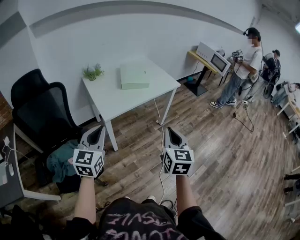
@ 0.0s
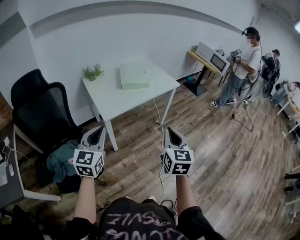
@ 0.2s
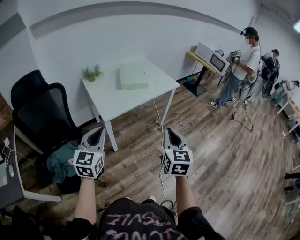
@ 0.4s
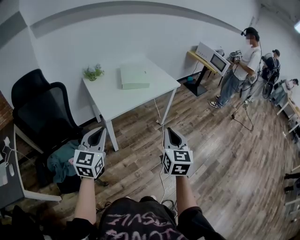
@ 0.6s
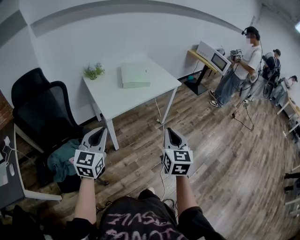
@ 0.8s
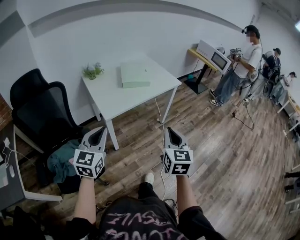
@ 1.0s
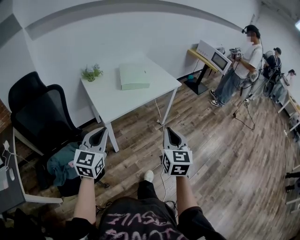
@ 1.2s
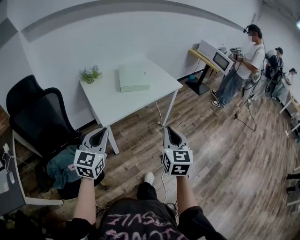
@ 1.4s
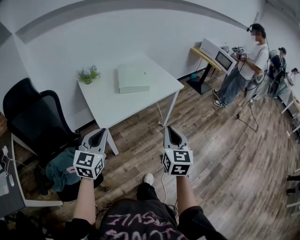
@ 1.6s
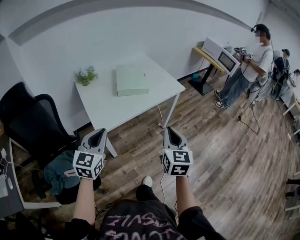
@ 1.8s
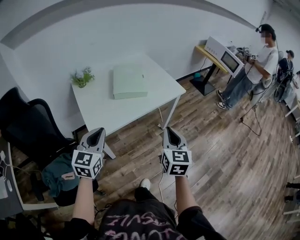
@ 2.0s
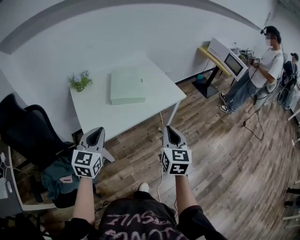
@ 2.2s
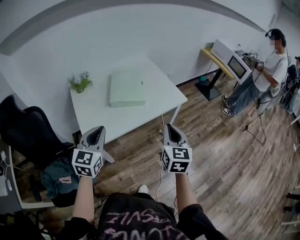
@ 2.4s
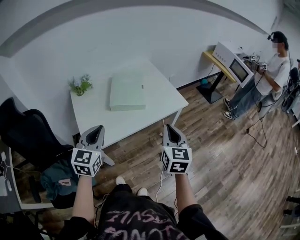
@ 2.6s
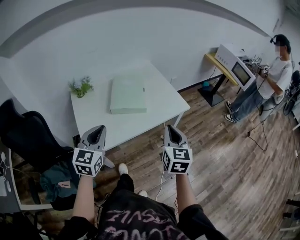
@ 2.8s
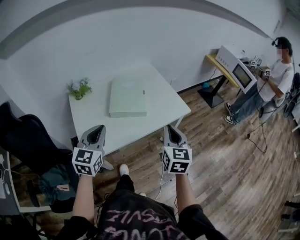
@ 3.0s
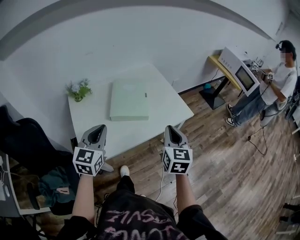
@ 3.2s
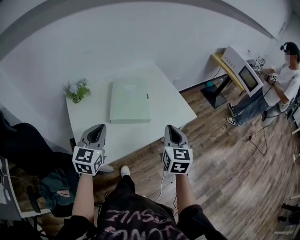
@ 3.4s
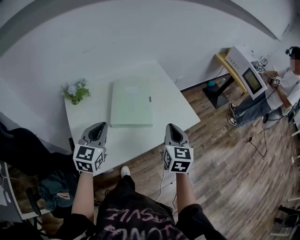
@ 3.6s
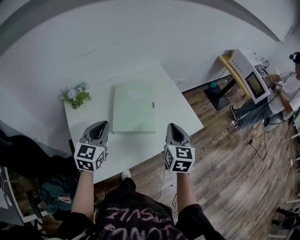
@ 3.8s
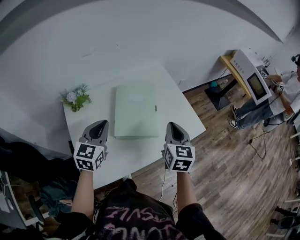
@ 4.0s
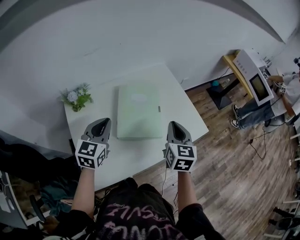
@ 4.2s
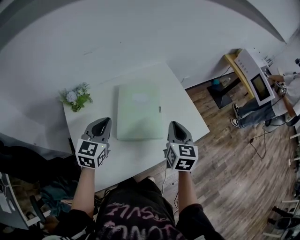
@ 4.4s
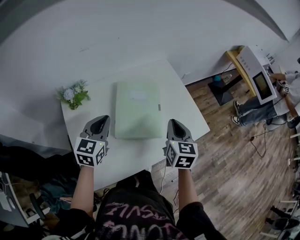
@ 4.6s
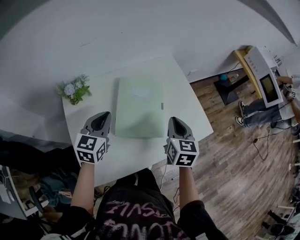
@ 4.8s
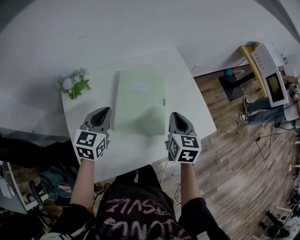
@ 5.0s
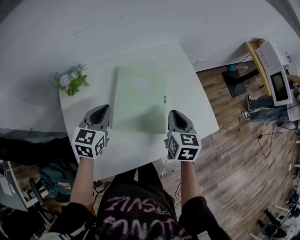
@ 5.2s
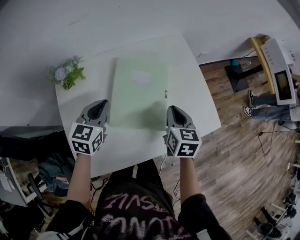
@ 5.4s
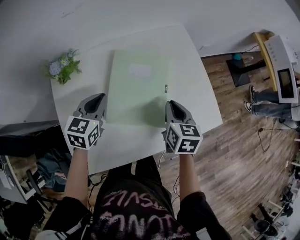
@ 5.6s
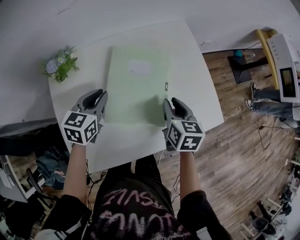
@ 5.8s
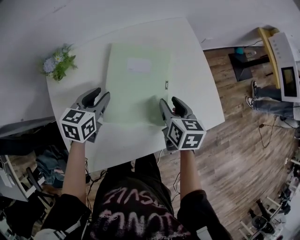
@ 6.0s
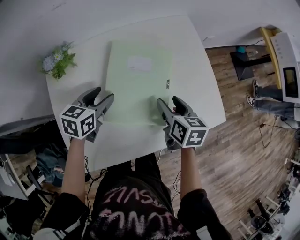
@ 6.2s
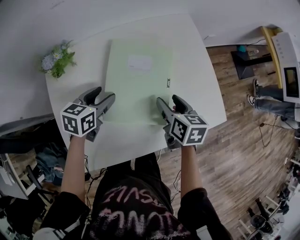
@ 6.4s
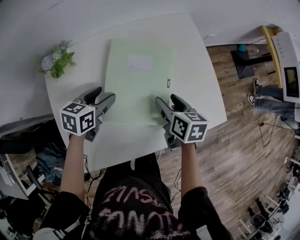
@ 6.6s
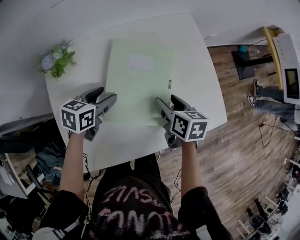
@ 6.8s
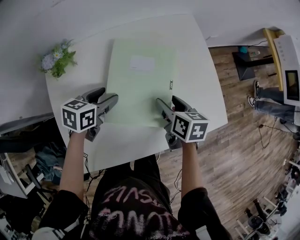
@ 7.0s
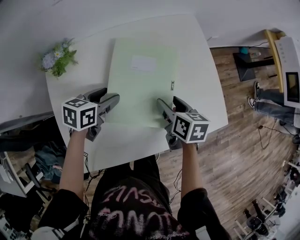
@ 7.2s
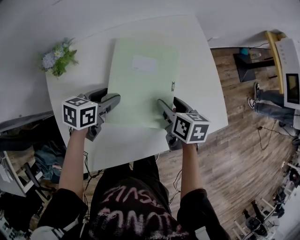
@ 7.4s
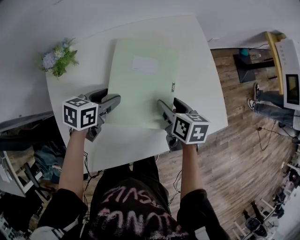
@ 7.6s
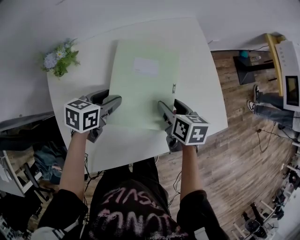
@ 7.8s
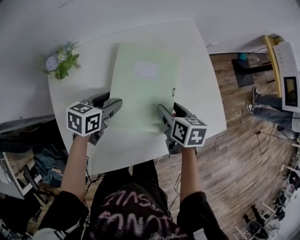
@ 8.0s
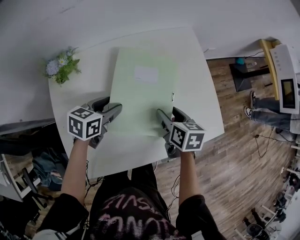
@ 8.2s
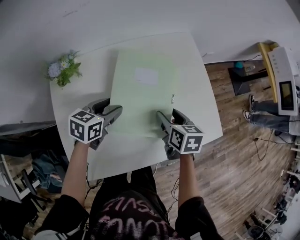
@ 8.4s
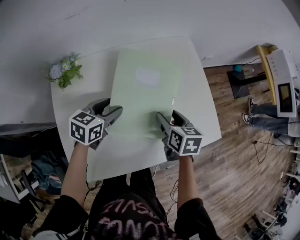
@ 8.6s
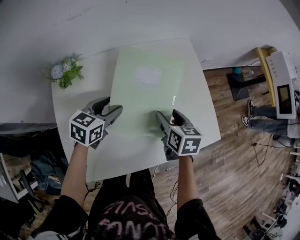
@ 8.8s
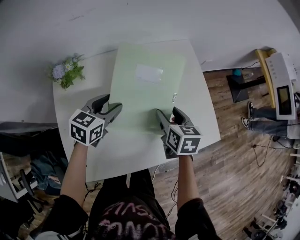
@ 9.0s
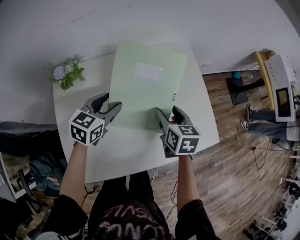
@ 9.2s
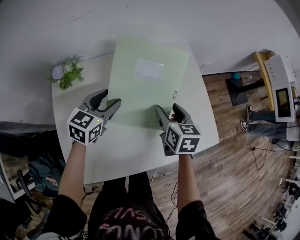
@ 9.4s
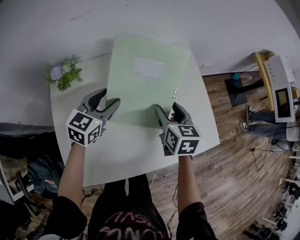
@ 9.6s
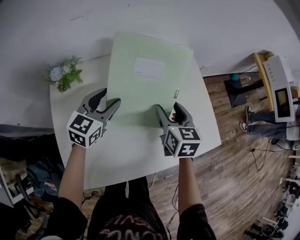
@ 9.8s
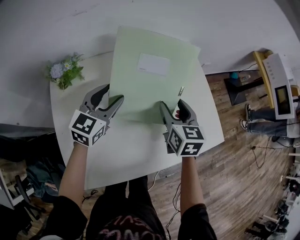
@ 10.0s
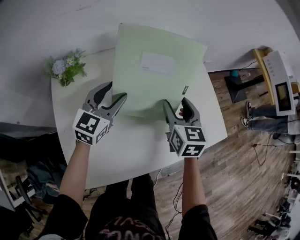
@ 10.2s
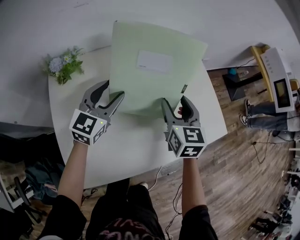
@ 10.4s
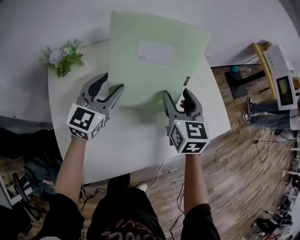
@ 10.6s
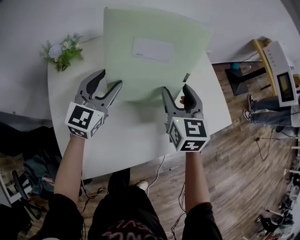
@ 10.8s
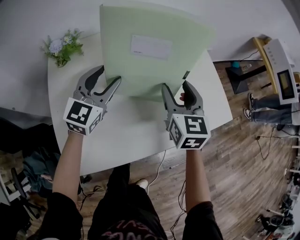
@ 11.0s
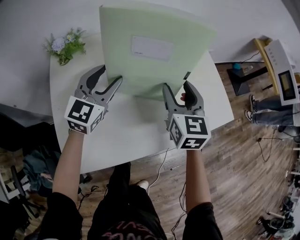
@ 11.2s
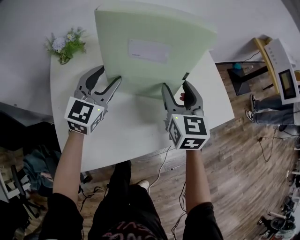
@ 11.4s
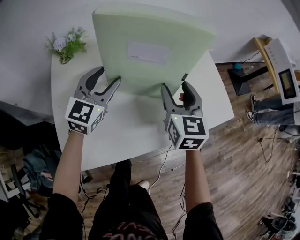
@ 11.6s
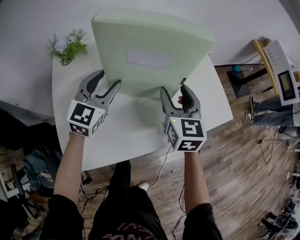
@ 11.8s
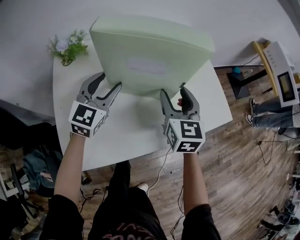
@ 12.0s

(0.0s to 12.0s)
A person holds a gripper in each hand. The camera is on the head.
0.0s - 1.6s: The grippers both shift forward by roughly 10 cm.
1.6s - 3.0s: Both grippers move forward, about 30 cm.
3.0s - 4.4s: The right gripper shifts roughly 25 cm forward and to the left; the left gripper moves forward, approximately 25 cm.
4.4s - 6.0s: The grippers both shift downward and forward by roughly 15 cm. The left gripper changes its angle by about 20 degrees, and opens its fingers. The right gripper changes its angle by roughly 30 degrees, and opens up.
6.0s - 7.6s: The left gripper ends up roughly 5 cm from where it was, and opens up.
7.6s - 9.0s: The left gripper is displaced upward by some 5 cm, and rotates approximately 20 degrees, while the right gripper changes place by roughly 5 cm.
9.0s - 10.4s: The right gripper rotates approximately 20 degrees, while the left gripper rotates some 30 degrees.
10.4s - 12.0s: Both grippers travel together backward, some 5 cm.

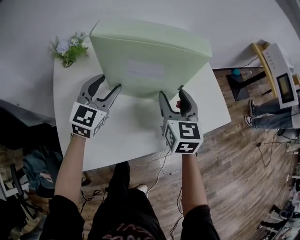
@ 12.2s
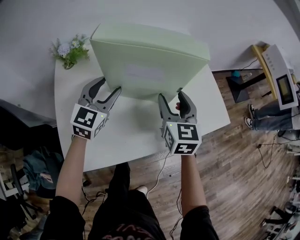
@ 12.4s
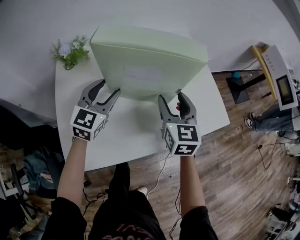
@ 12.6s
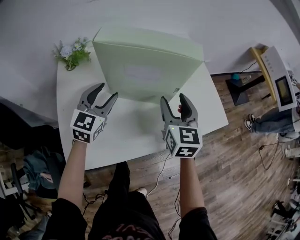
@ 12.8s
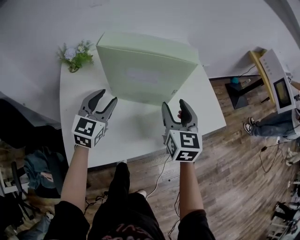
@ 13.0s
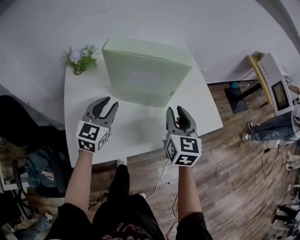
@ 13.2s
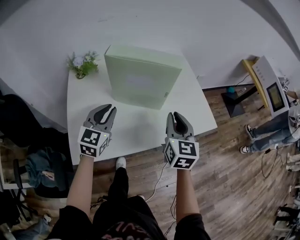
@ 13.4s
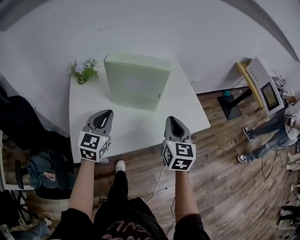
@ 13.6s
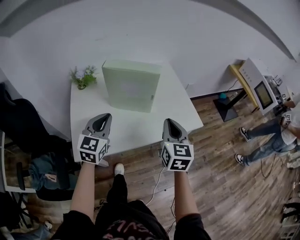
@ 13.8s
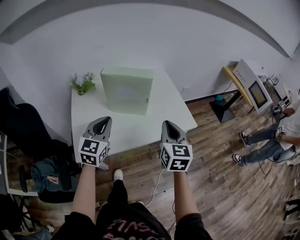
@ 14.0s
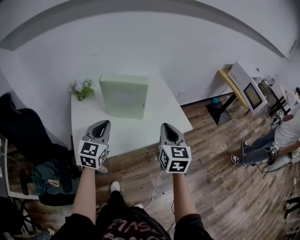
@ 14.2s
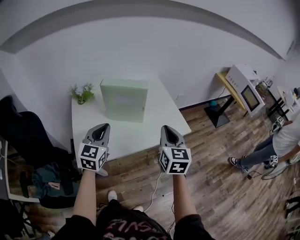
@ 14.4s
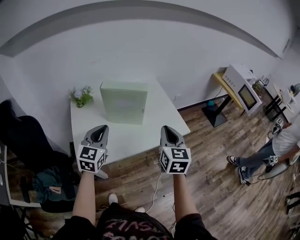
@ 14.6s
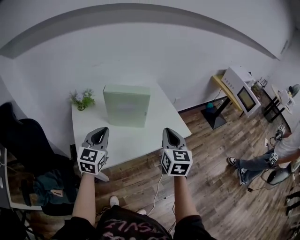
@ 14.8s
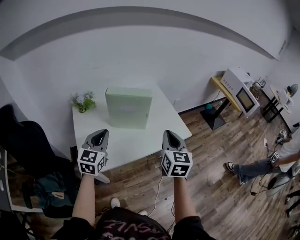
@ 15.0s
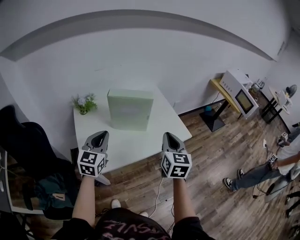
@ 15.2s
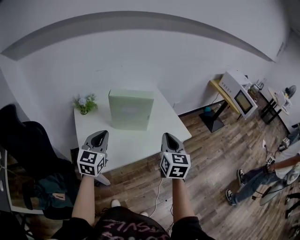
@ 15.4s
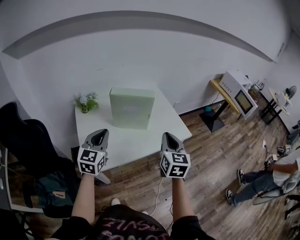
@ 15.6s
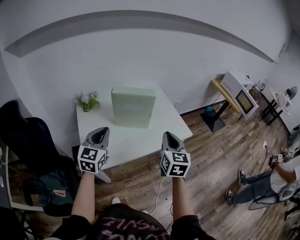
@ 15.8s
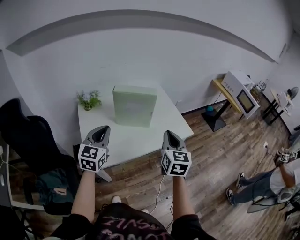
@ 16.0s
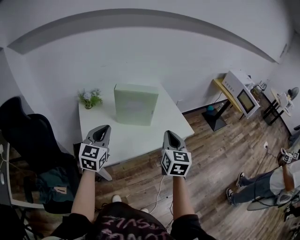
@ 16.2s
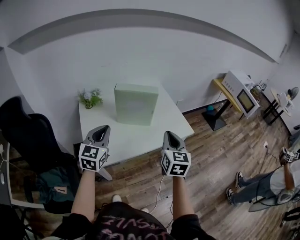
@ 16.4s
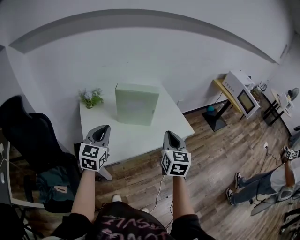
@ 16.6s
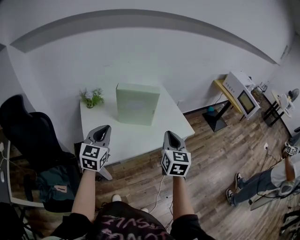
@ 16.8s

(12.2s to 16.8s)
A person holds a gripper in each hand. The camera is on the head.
12.2s - 13.8s: The right gripper heads backward, upward and to the right, covering approximately 20 cm, and closes, while the left gripper shifts roughly 20 cm backward and upward, and closes its fingers.
13.8s - 15.2s: The right gripper shifts roughly 10 cm upward and backward; the left gripper is displaced upward by some 10 cm.
15.2s - 16.8s: There are only small adjustments of the grippers.

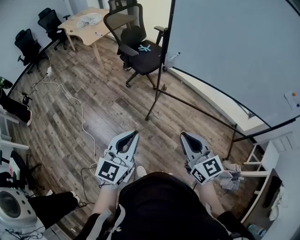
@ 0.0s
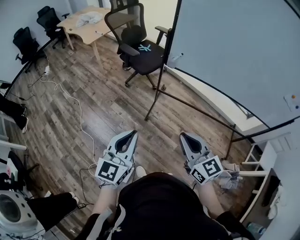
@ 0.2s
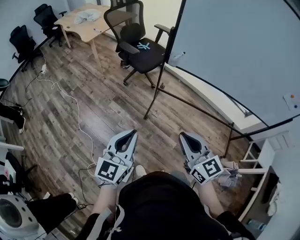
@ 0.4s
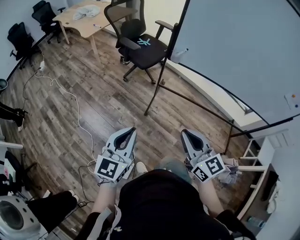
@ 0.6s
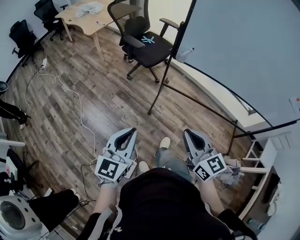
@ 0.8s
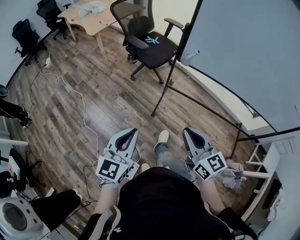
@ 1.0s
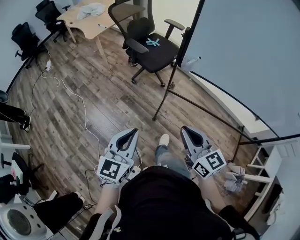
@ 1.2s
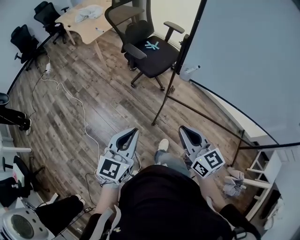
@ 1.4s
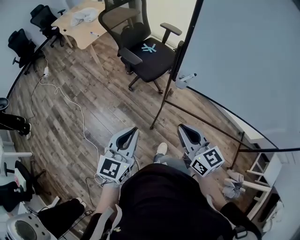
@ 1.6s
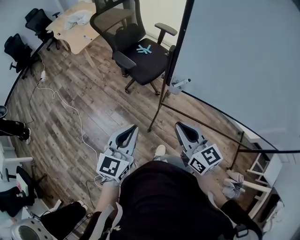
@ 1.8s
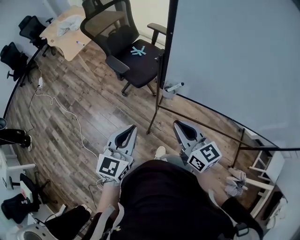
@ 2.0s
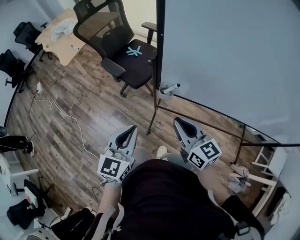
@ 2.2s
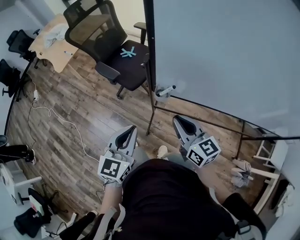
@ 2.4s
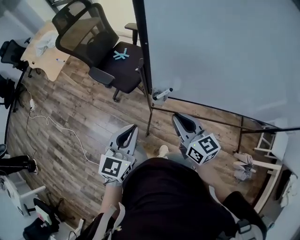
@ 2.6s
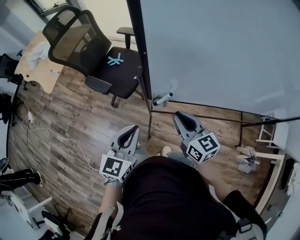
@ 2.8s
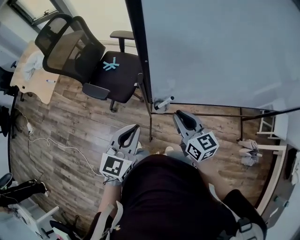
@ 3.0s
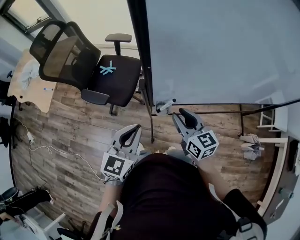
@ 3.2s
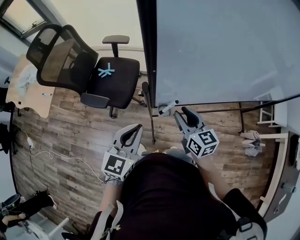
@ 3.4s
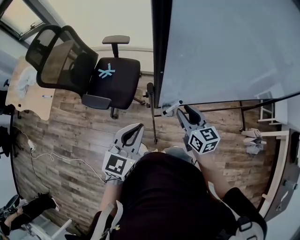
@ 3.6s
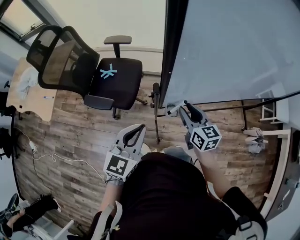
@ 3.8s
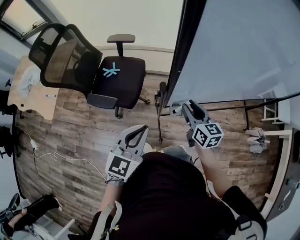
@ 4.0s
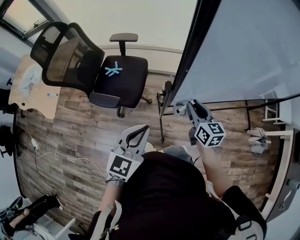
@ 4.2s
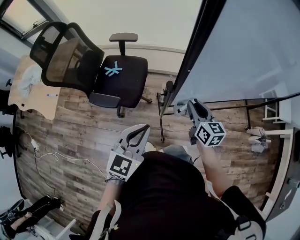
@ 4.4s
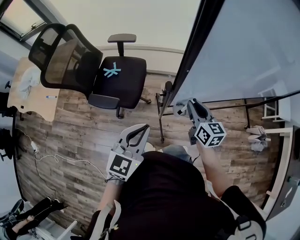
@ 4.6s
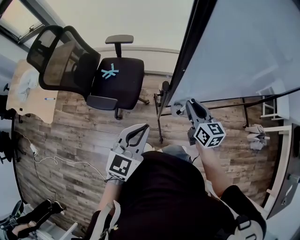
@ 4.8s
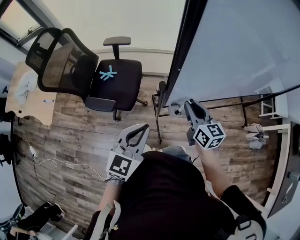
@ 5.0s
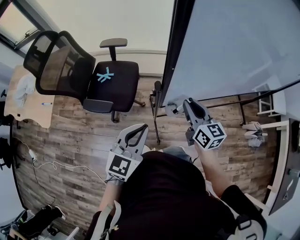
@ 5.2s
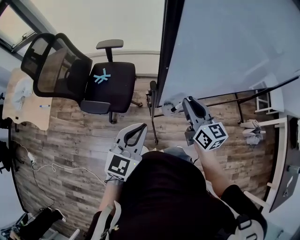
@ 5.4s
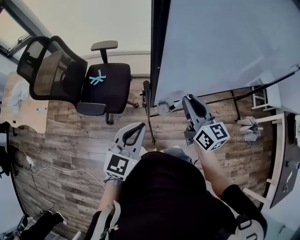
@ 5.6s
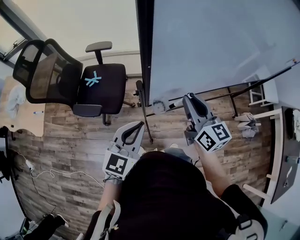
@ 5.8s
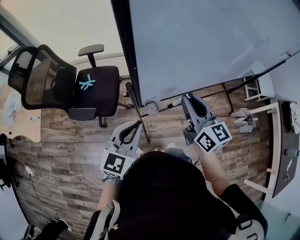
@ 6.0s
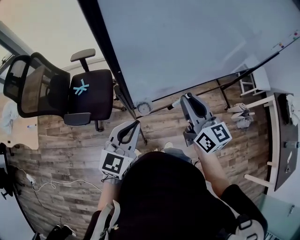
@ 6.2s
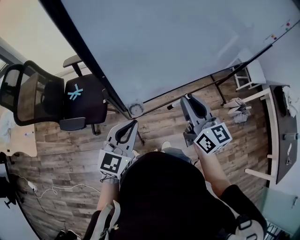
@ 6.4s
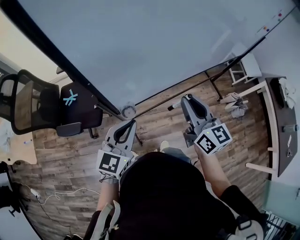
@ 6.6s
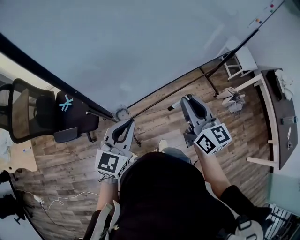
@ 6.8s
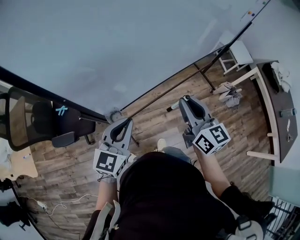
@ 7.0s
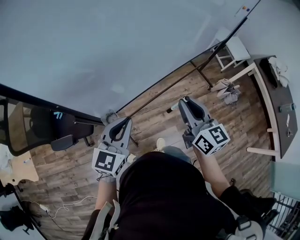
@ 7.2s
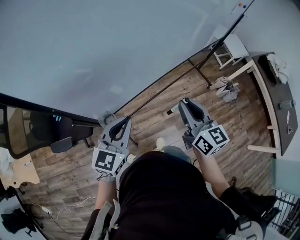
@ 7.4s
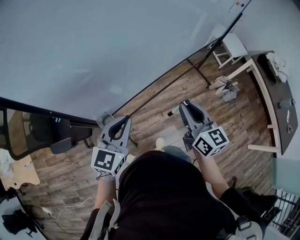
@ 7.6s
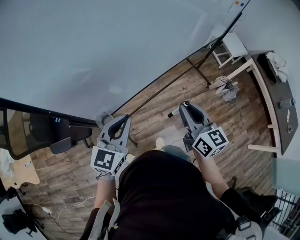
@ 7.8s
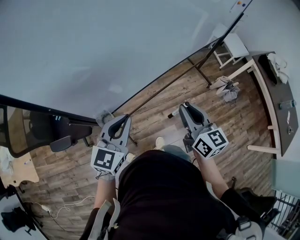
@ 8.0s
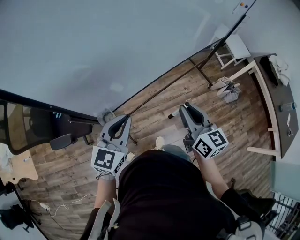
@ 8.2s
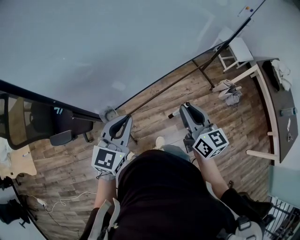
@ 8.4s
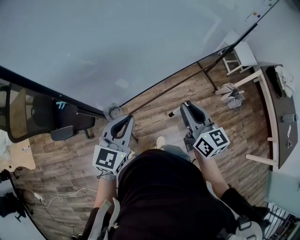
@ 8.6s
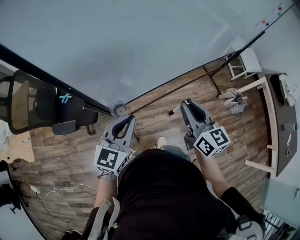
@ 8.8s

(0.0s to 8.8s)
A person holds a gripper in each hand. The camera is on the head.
0.0s - 1.4s: The two grippers go some 20 cm forward.
1.4s - 3.0s: The right gripper shifts by some 30 cm, and rotates about 30 degrees, while the left gripper changes place by about 35 cm, and turns by roughly 30 degrees.
3.0s - 4.4s: The right gripper shifts some 10 cm forward and downward, and turns by some 20 degrees. The left gripper is displaced to the left by some 5 cm.
4.4s - 5.8s: The left gripper is displaced to the right by approximately 5 cm. Meanwhile the right gripper heads upward, covering about 15 cm.
5.8s - 7.4s: The left gripper goes some 20 cm to the right and forward; the right gripper goes roughly 25 cm to the right, and rotates roughly 20 degrees.
7.4s - 8.8s: The right gripper goes approximately 5 cm to the left.
